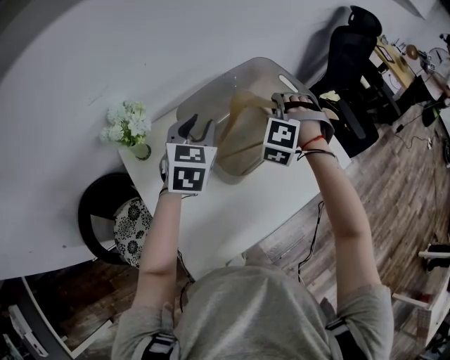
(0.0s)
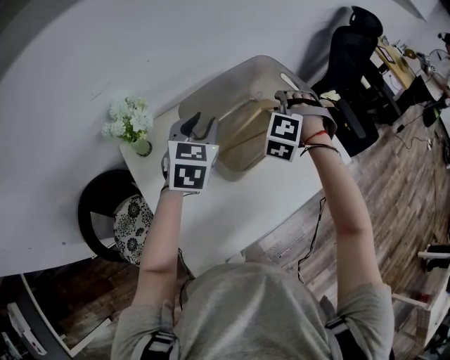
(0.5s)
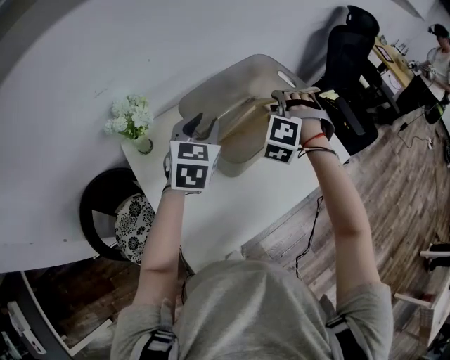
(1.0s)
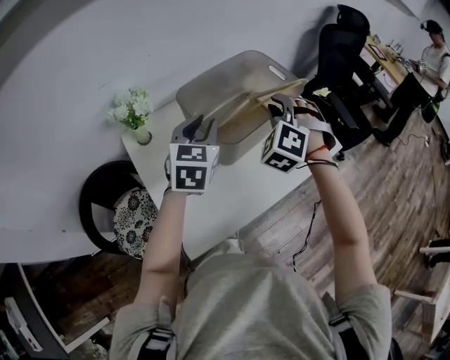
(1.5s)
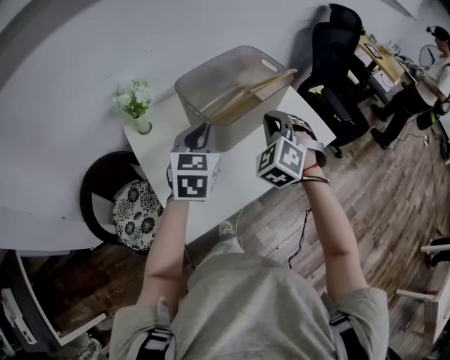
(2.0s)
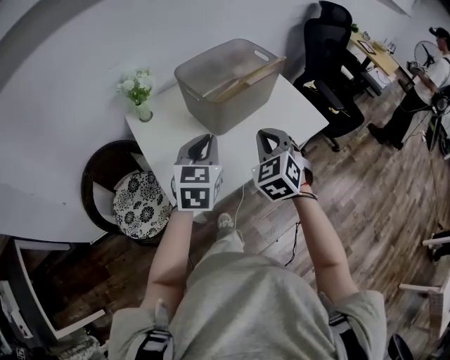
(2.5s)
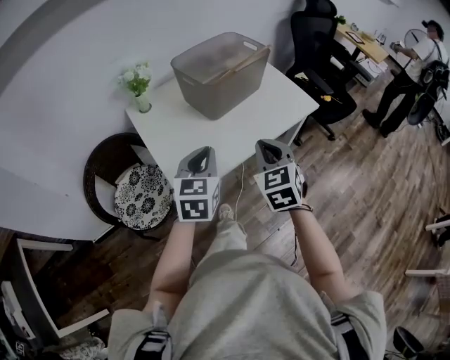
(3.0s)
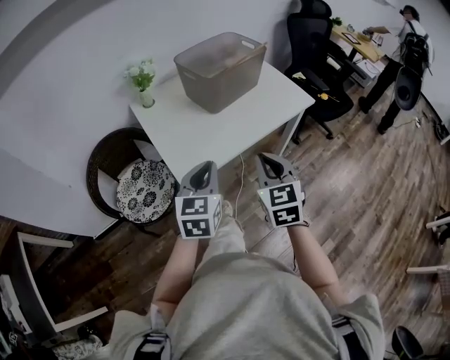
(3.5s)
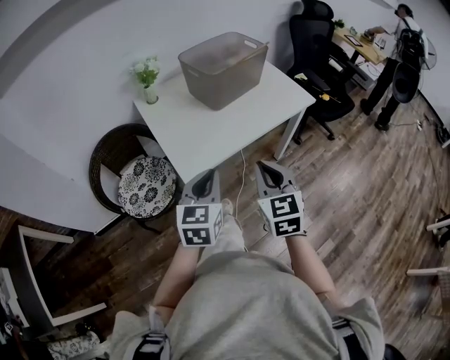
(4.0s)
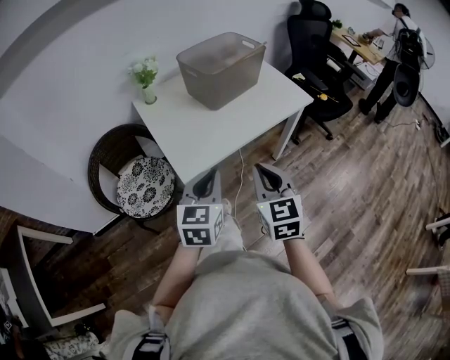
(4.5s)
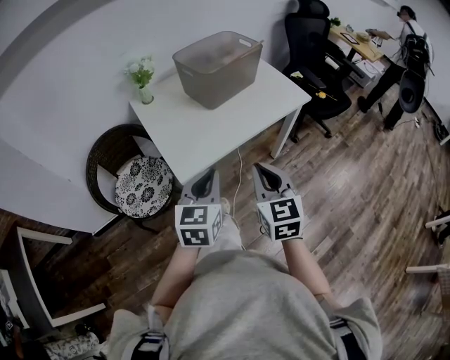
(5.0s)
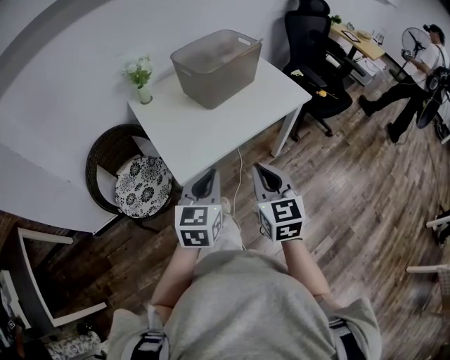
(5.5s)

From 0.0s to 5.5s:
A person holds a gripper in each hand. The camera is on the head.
From 0.0s to 2.0s: The right gripper is displaced backward by some 20 cm, and rotates approximately 30 degrees; the left gripper travels backward and to the right by some 20 cm, and closes.
From 2.0s to 3.5s: Both grippers move backward, about 30 cm. The right gripper rotates around the line of its fingers by approximately 50 degrees, clockwise from behind.
From 3.5s to 5.5s: The left gripper moves about 5 cm, while the right gripper moves backward, some 5 cm.

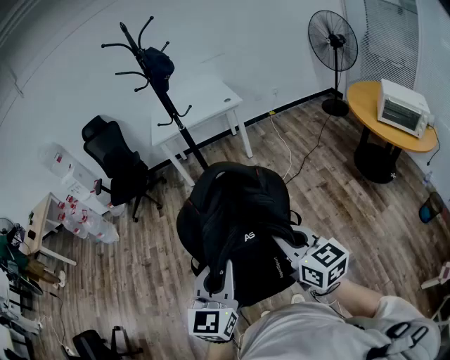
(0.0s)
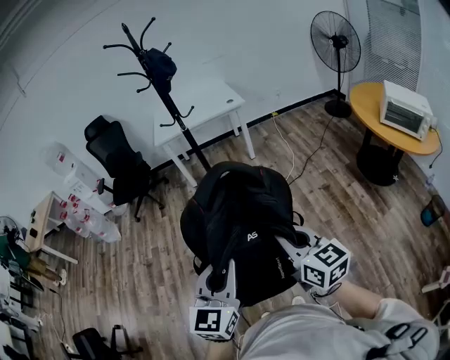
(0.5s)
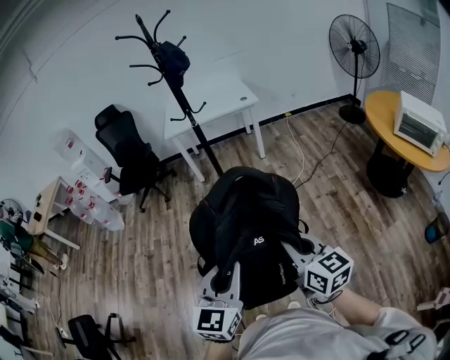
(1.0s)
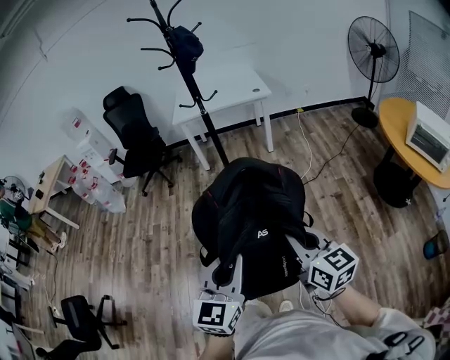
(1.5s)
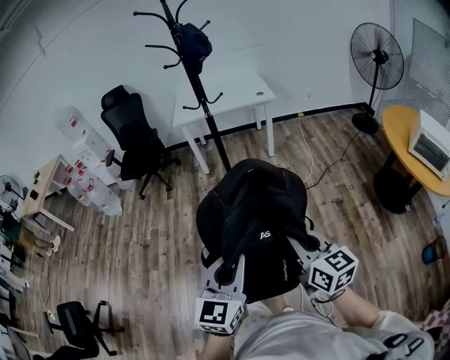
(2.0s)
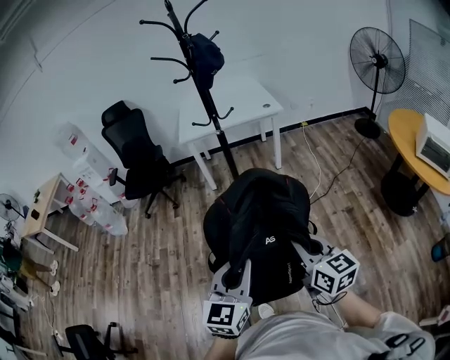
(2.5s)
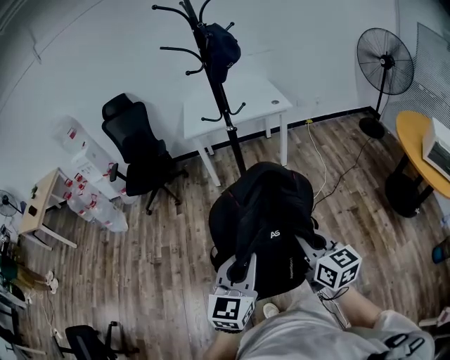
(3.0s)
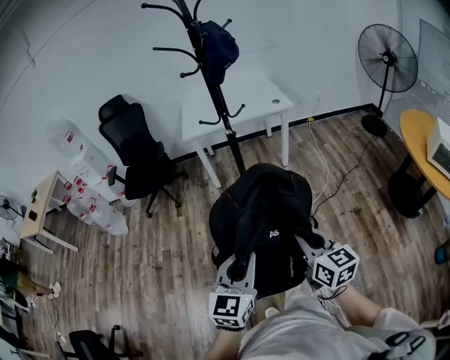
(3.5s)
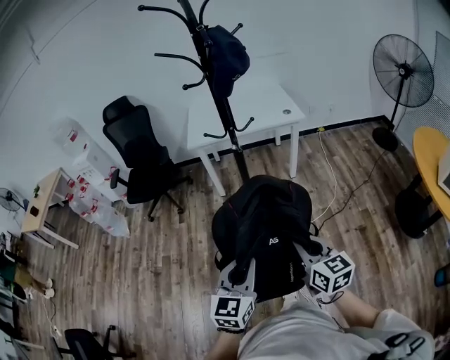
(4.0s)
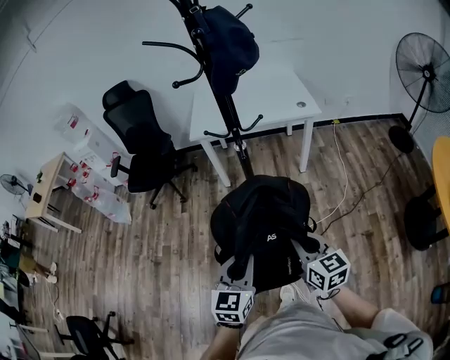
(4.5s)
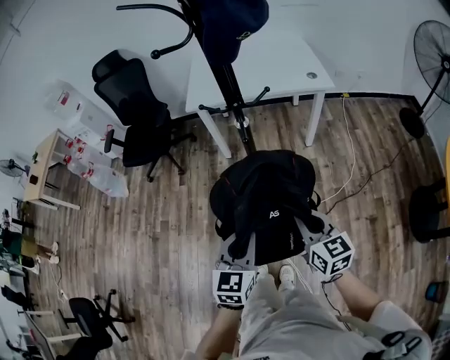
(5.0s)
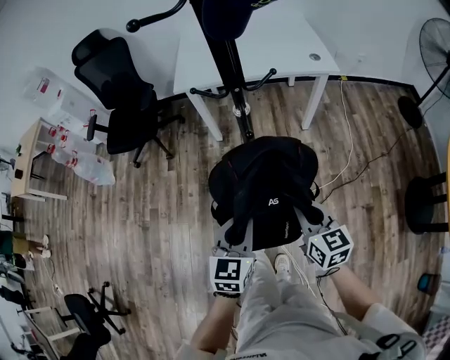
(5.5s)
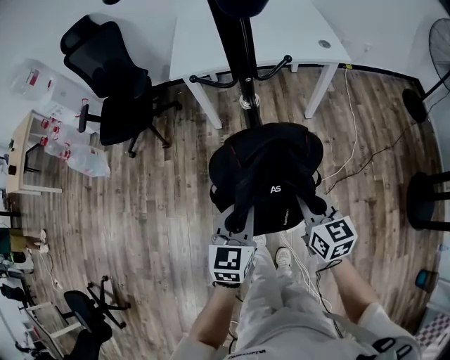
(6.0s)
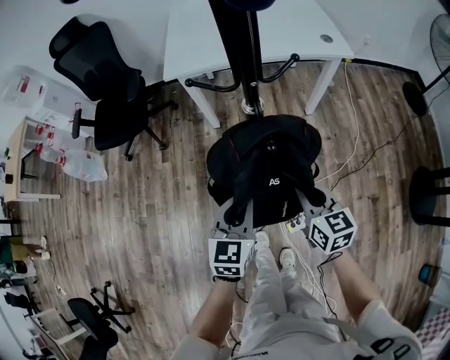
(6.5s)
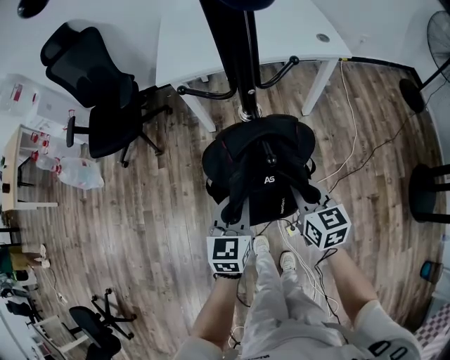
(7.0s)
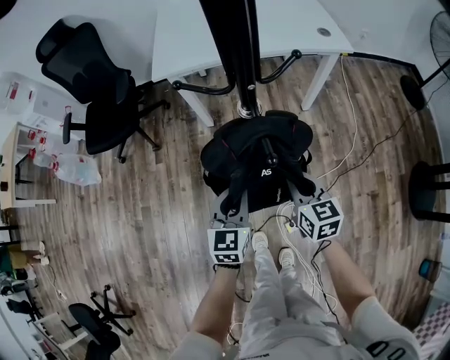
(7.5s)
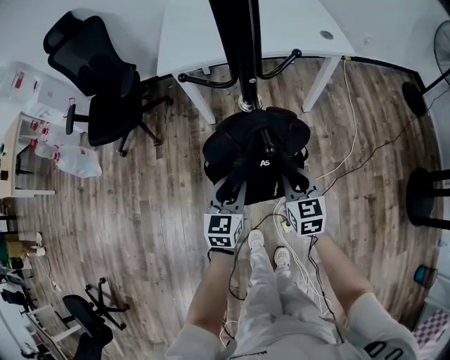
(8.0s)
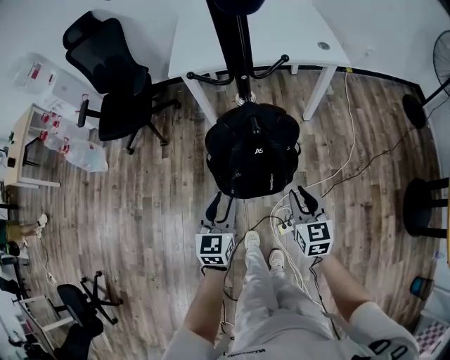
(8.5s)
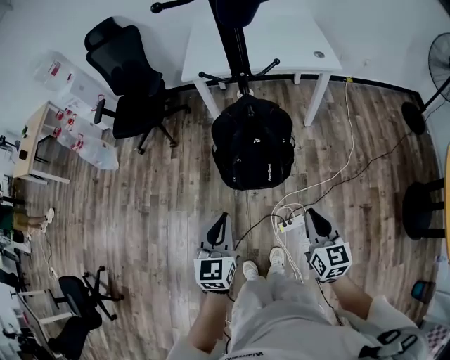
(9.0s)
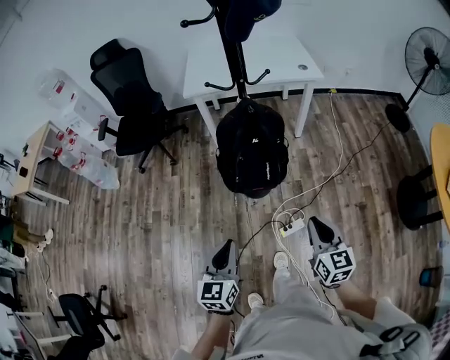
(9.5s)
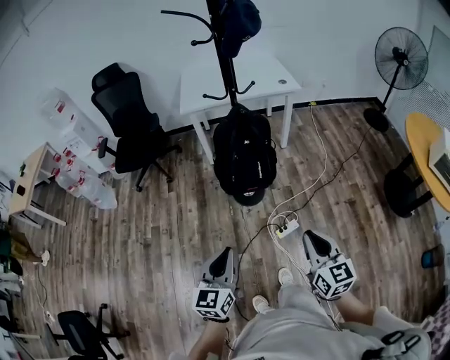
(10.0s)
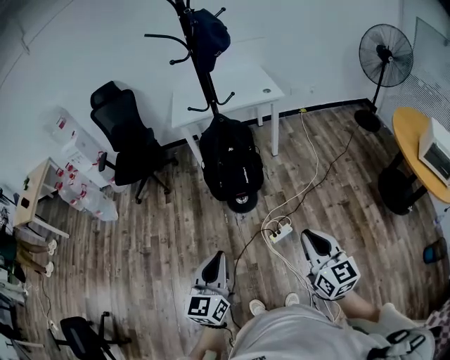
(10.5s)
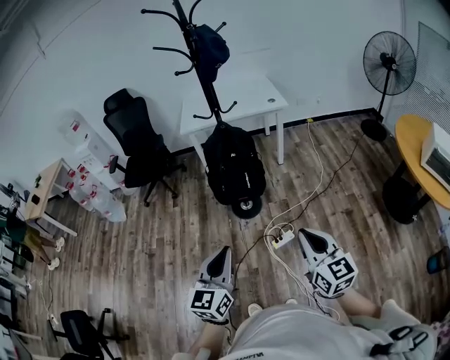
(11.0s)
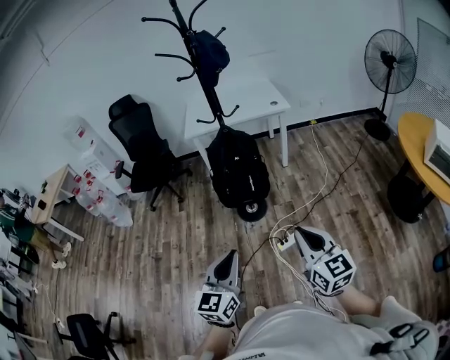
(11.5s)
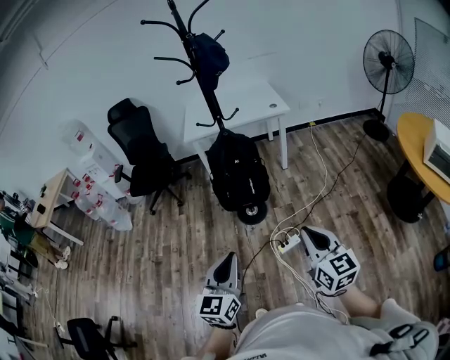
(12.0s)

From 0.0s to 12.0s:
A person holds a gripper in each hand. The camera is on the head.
From 0.0s to 2.0s: The two grippers go roughly 10 cm forward.
From 2.0s to 4.0s: Both grippers travel together forward, about 30 cm.
From 4.0s to 6.0s: The two grippers go some 35 cm forward and downward.
From 6.0s to 8.0s: Both grippers move downward and forward, roughly 15 cm.
From 8.0s to 10.0s: Both grippers are carried backward, some 50 cm. Both grippers travel together upward, roughly 25 cm. The left gripper closes.
From 10.0s to 12.0s: Both grippers move to the right, backward and upward, about 15 cm.

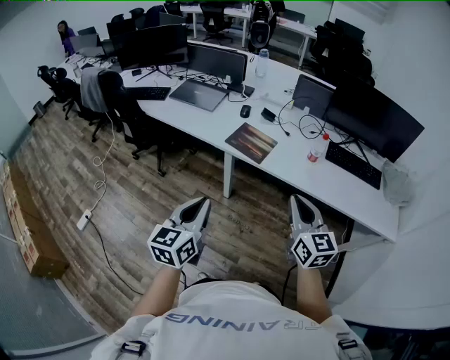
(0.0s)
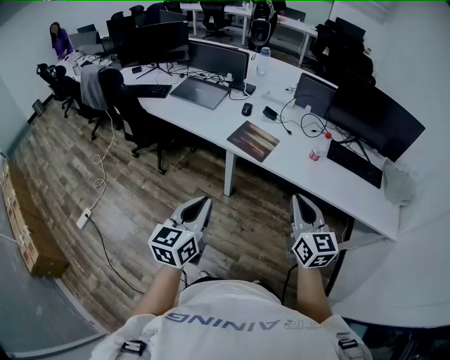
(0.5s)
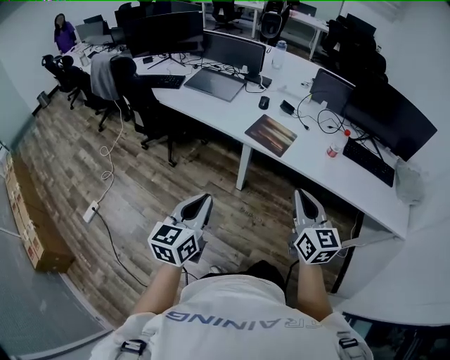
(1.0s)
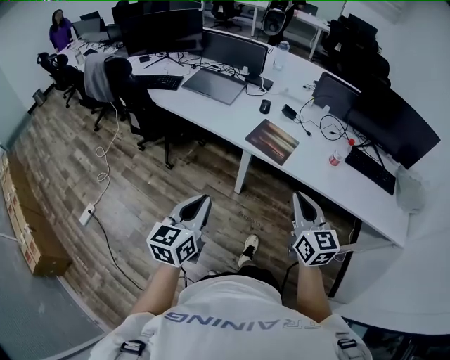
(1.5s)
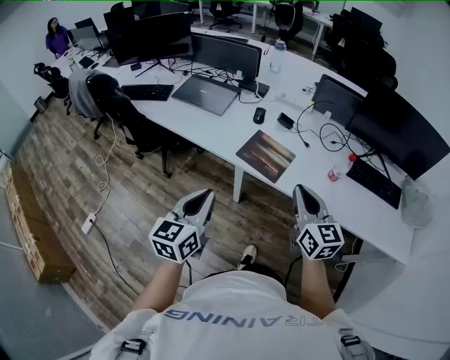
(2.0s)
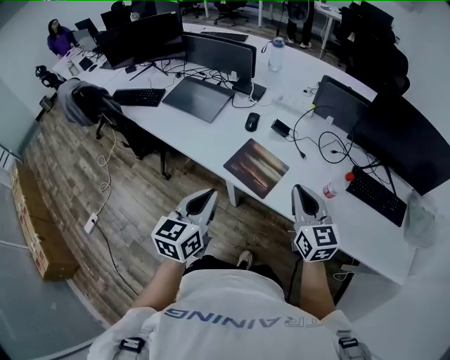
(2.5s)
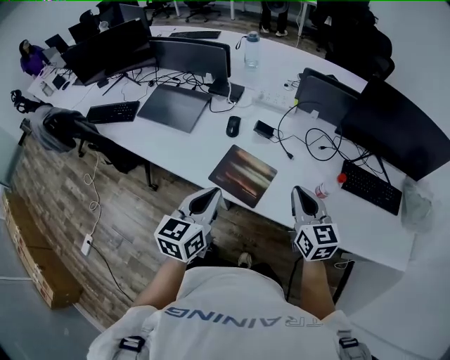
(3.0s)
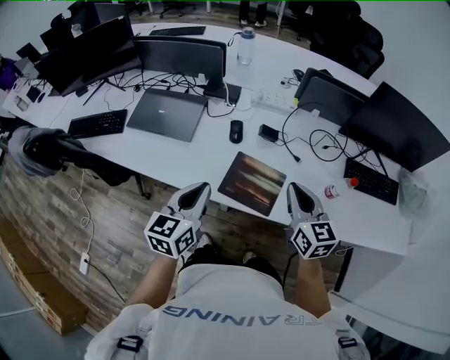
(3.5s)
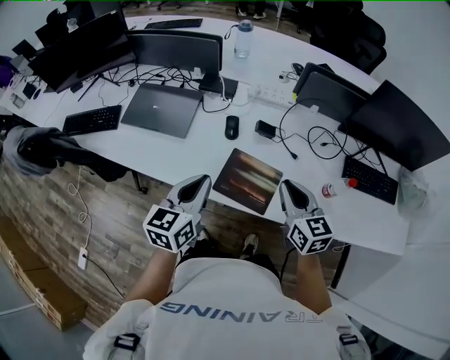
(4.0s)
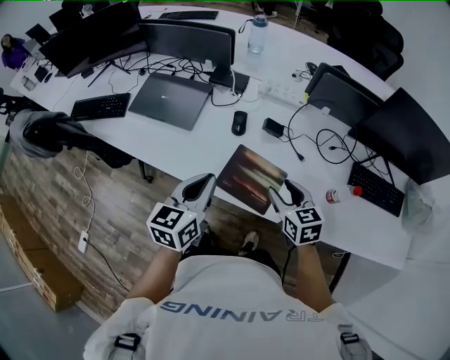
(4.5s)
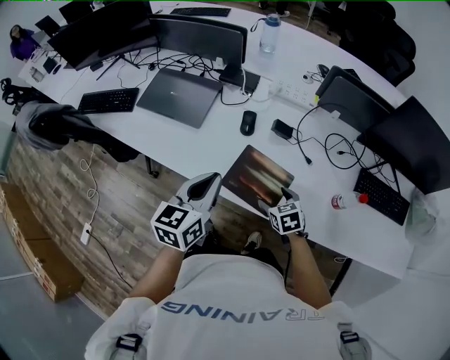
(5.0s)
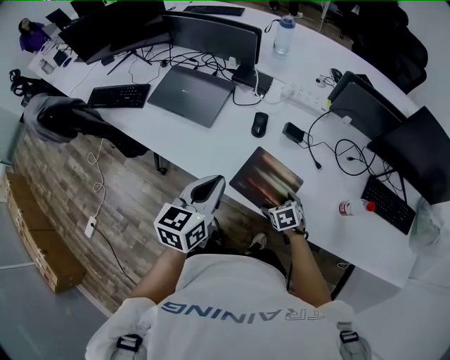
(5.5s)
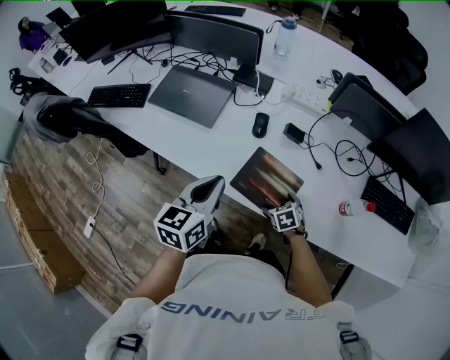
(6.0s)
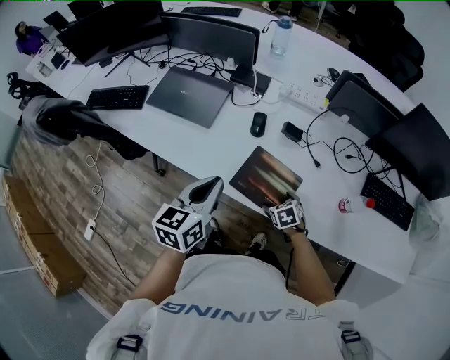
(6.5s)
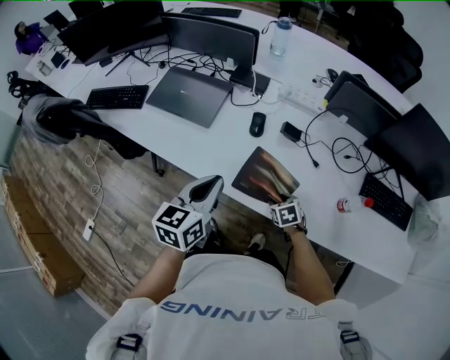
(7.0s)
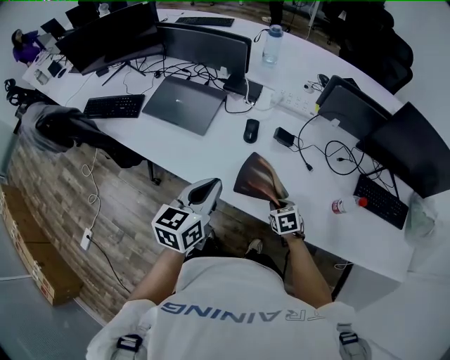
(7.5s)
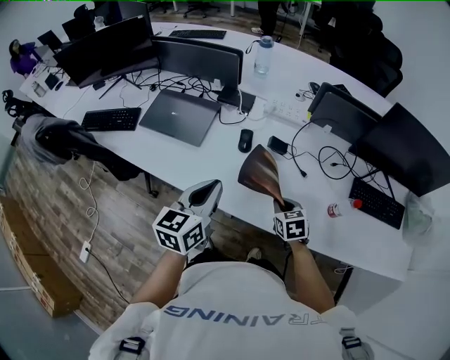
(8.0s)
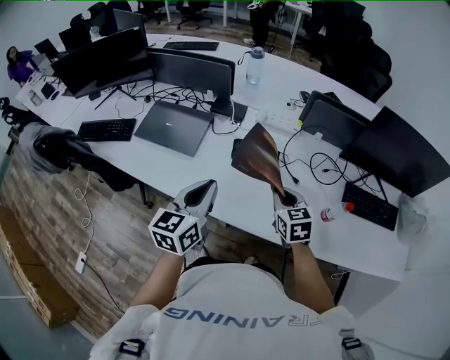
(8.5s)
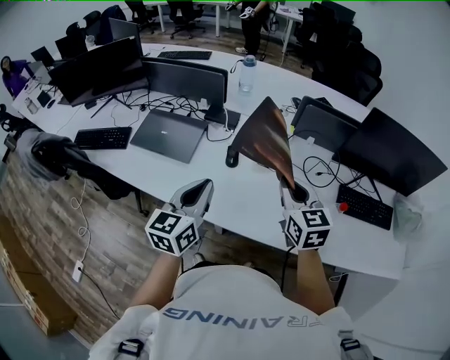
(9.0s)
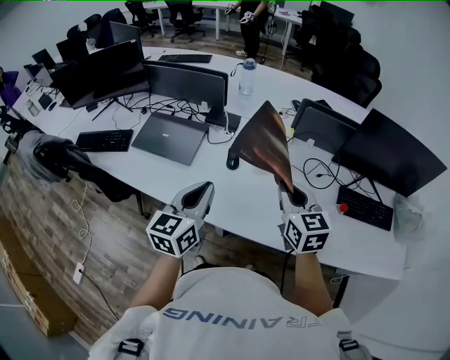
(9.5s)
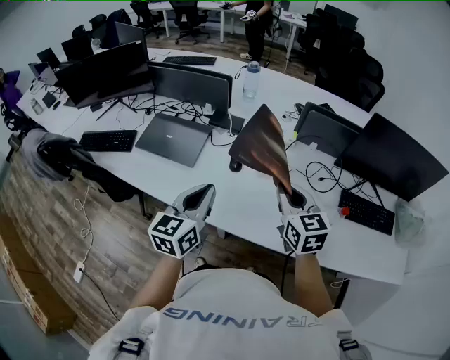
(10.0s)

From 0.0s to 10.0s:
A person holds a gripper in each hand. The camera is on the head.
From 0.0s to 2.0s: The two grippers go roughly 15 cm forward.
From 2.0s to 4.0s: The grippers both shift forward by approximately 25 cm.
From 4.0s to 6.0s: The right gripper is displaced downward by some 30 cm, angles its fingers downward, by about 40 degrees, and opens its fingers.
From 6.0s to 8.0s: The right gripper goes approximately 15 cm upward, and closes up.
From 8.0s to 10.0s: The right gripper is displaced upward by about 25 cm, and changes its angle by roughly 30 degrees.
